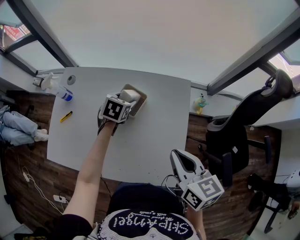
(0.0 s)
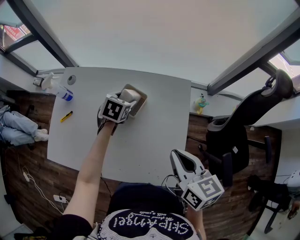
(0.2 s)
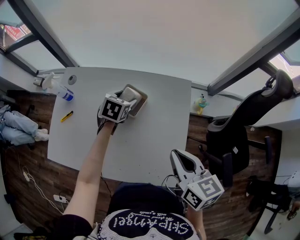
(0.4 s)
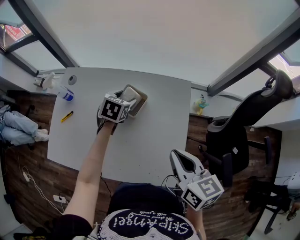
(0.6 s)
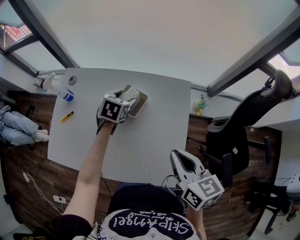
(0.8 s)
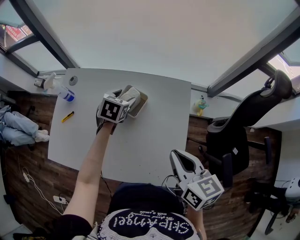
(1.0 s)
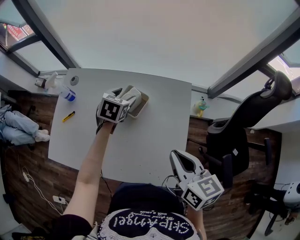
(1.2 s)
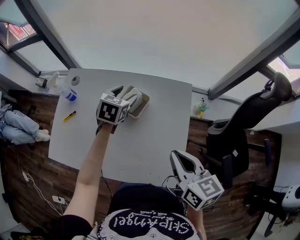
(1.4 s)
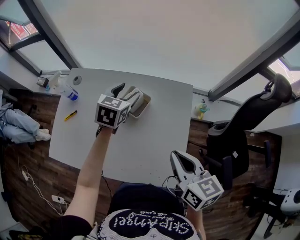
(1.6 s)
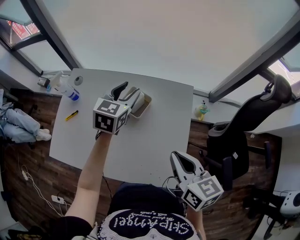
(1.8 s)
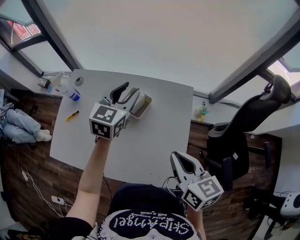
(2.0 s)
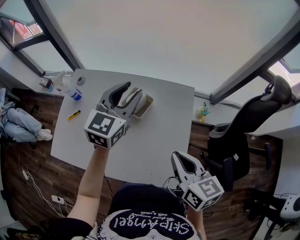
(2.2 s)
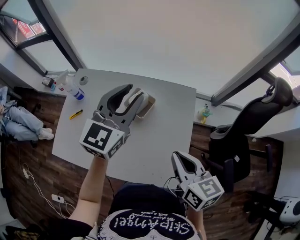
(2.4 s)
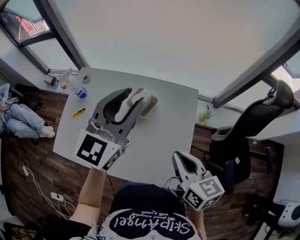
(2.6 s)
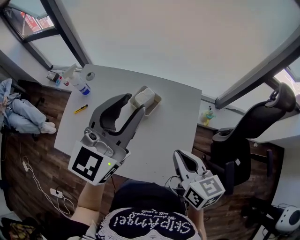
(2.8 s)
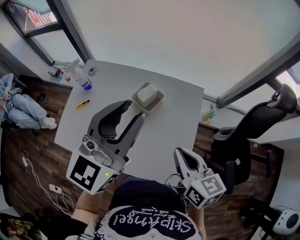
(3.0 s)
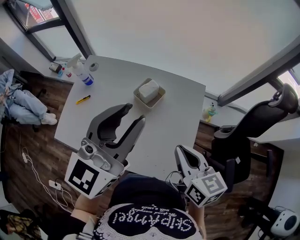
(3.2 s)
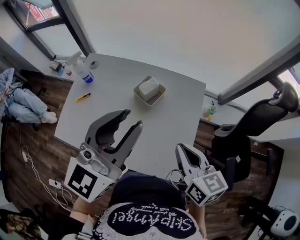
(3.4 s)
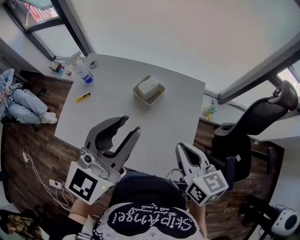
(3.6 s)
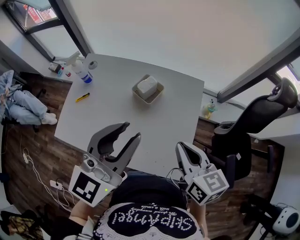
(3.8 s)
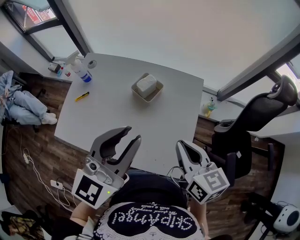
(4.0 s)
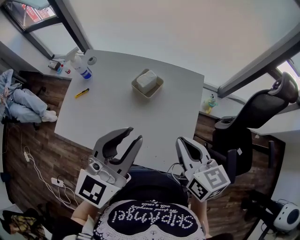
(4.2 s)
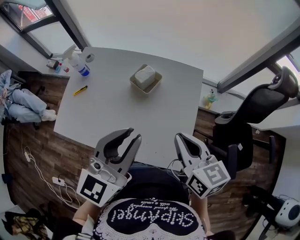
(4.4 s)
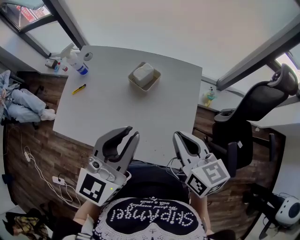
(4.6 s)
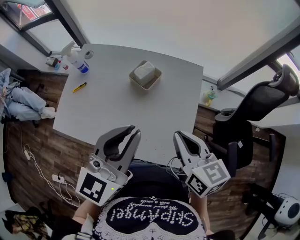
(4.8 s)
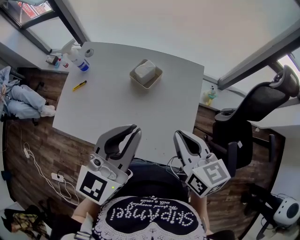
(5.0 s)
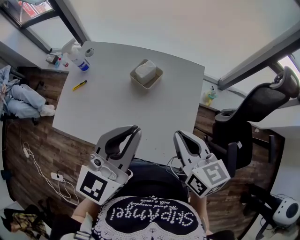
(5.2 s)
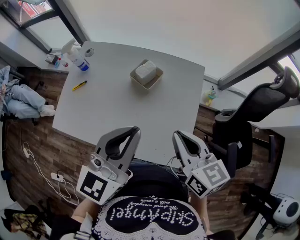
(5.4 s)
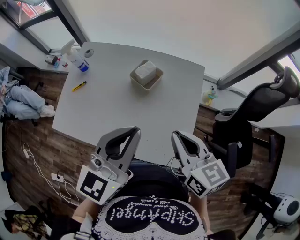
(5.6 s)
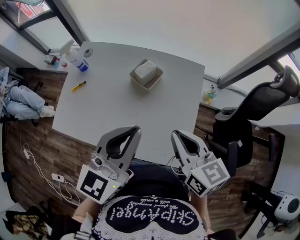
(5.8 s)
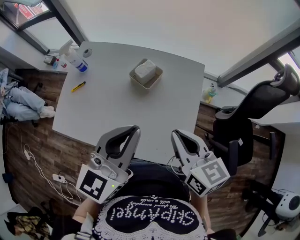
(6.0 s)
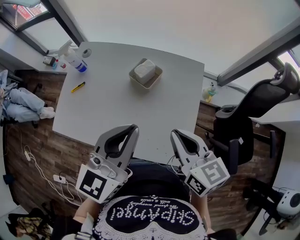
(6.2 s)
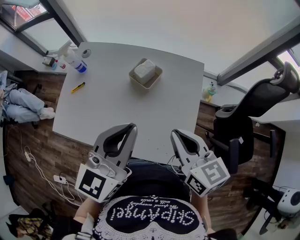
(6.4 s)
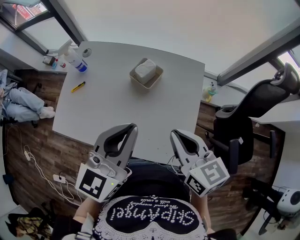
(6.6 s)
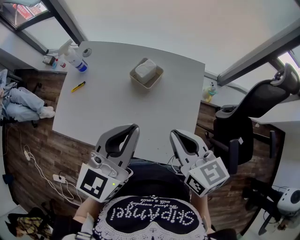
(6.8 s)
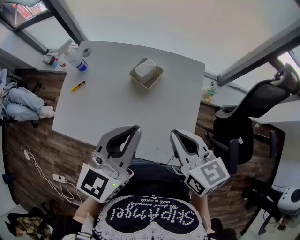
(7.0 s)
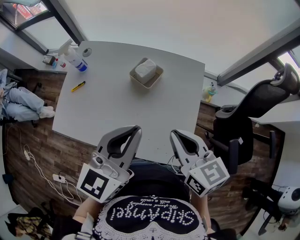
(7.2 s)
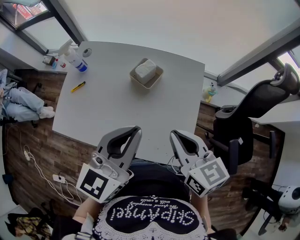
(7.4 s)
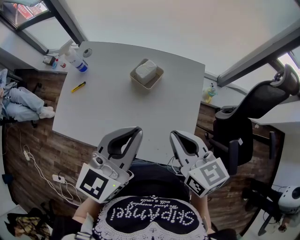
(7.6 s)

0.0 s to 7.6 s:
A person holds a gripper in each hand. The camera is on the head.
0.0 to 1.6 s: The left gripper shifts some 10 cm upward, and swivels some 20 degrees.
1.6 to 3.0 s: The left gripper goes some 30 cm upward and backward, tilts its fingers approximately 40 degrees upward, and closes its fingers.
3.0 to 4.6 s: The left gripper is displaced backward and downward by approximately 10 cm.
4.6 to 6.0 s: The grippers make only small movements.
6.0 to 7.6 s: The two grippers keep their place.

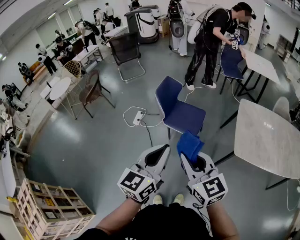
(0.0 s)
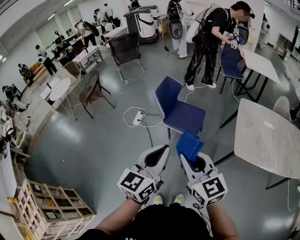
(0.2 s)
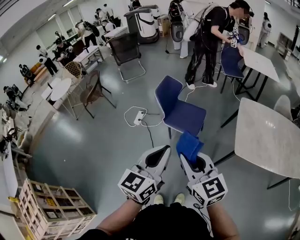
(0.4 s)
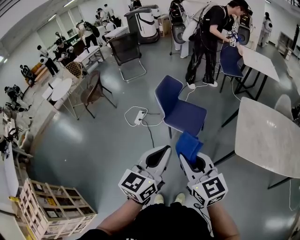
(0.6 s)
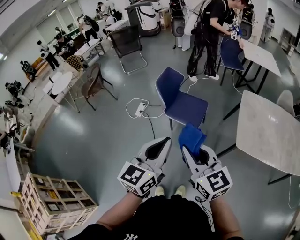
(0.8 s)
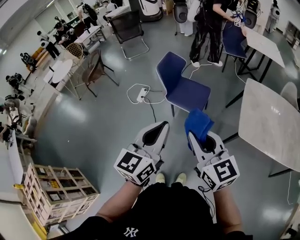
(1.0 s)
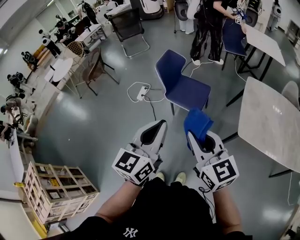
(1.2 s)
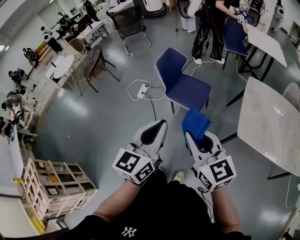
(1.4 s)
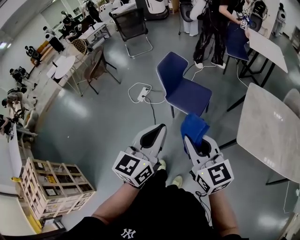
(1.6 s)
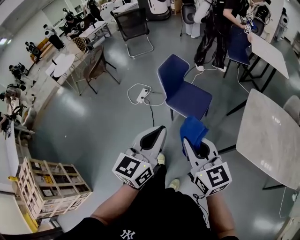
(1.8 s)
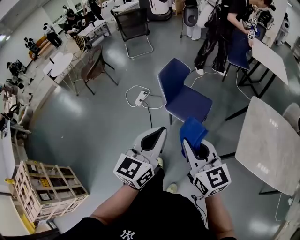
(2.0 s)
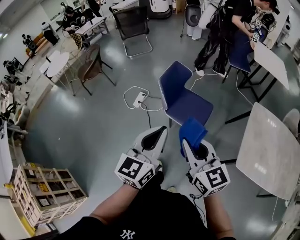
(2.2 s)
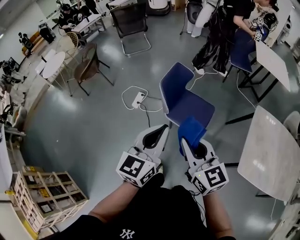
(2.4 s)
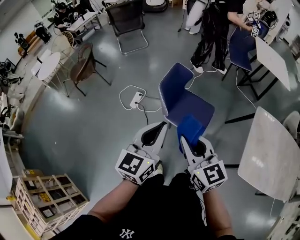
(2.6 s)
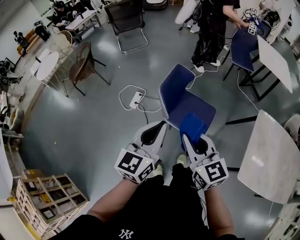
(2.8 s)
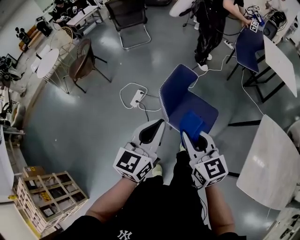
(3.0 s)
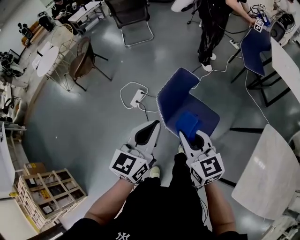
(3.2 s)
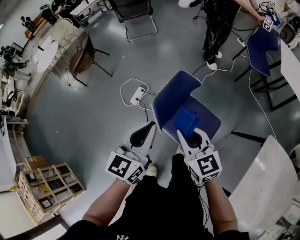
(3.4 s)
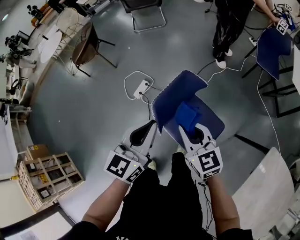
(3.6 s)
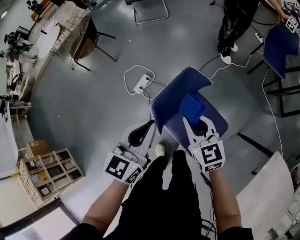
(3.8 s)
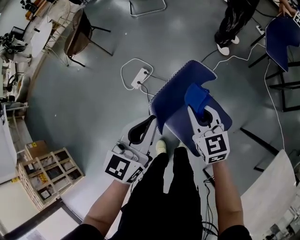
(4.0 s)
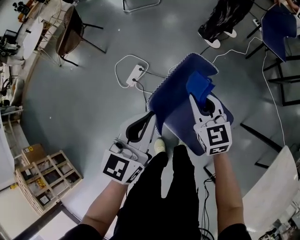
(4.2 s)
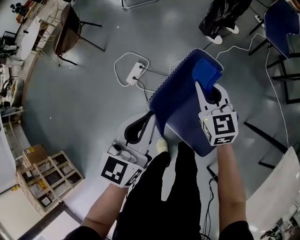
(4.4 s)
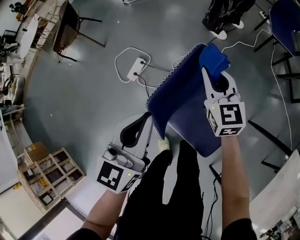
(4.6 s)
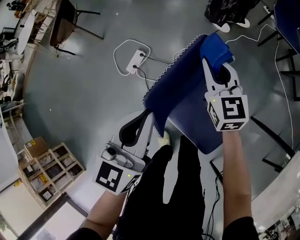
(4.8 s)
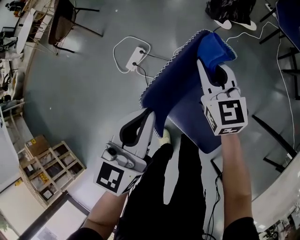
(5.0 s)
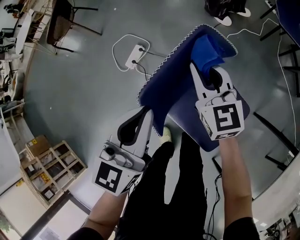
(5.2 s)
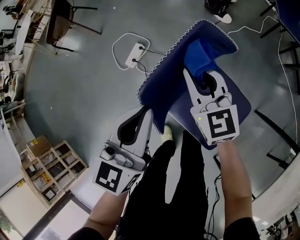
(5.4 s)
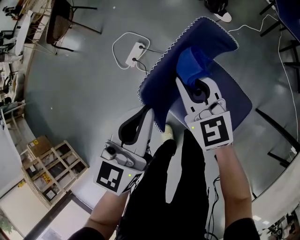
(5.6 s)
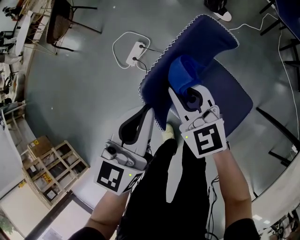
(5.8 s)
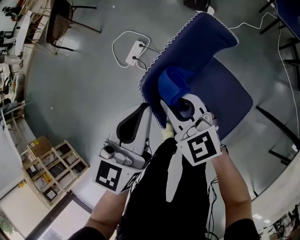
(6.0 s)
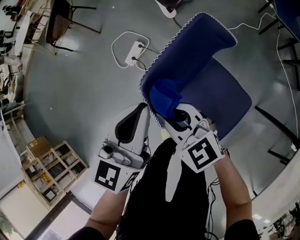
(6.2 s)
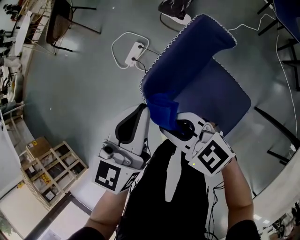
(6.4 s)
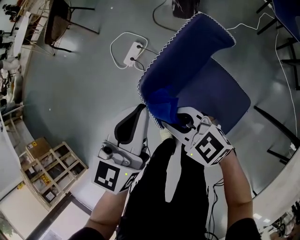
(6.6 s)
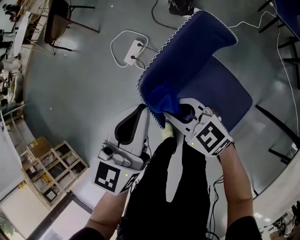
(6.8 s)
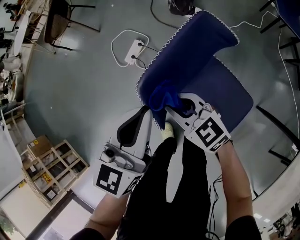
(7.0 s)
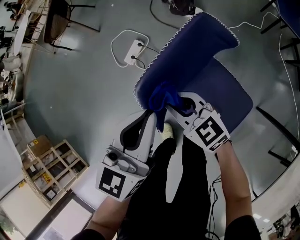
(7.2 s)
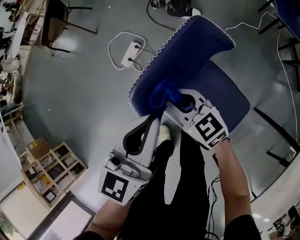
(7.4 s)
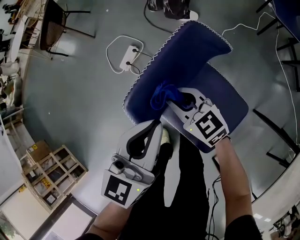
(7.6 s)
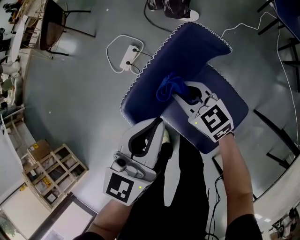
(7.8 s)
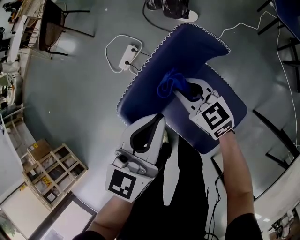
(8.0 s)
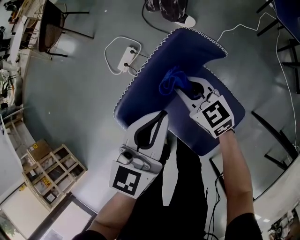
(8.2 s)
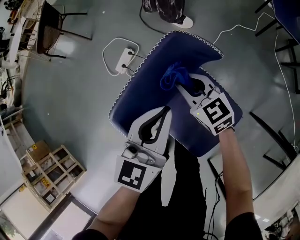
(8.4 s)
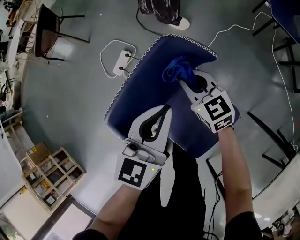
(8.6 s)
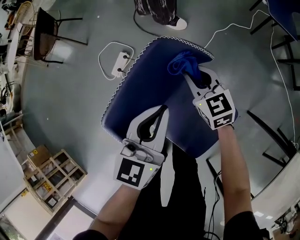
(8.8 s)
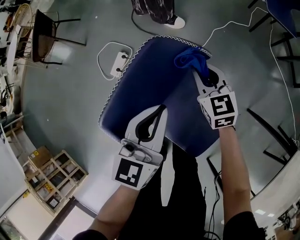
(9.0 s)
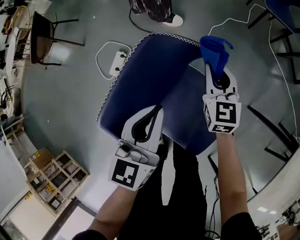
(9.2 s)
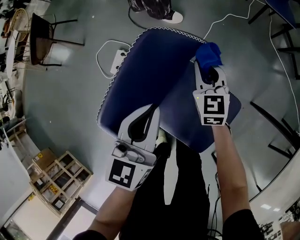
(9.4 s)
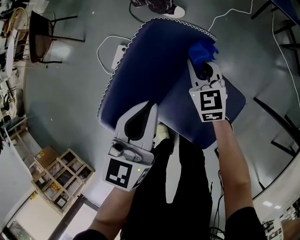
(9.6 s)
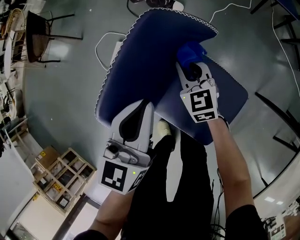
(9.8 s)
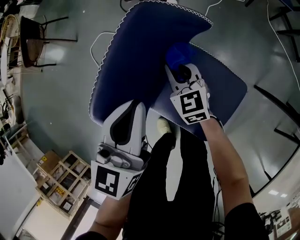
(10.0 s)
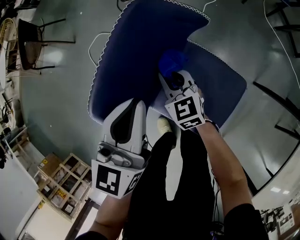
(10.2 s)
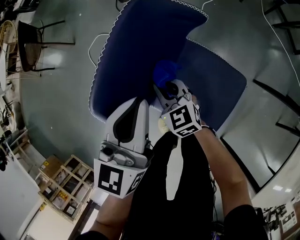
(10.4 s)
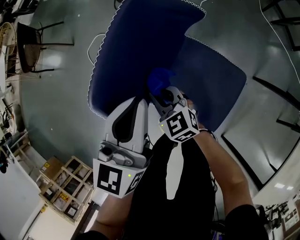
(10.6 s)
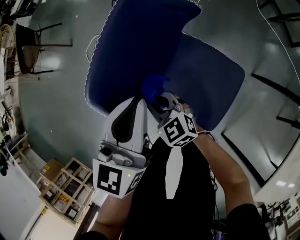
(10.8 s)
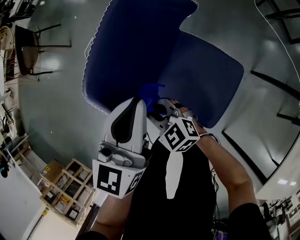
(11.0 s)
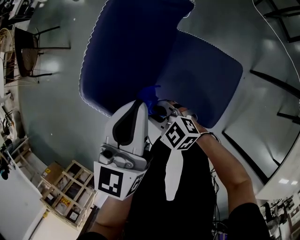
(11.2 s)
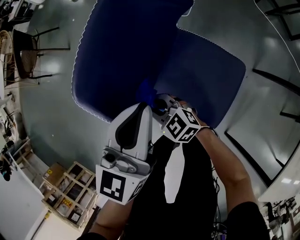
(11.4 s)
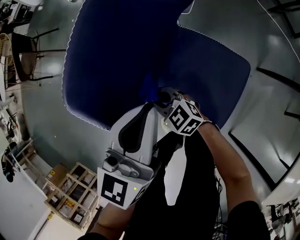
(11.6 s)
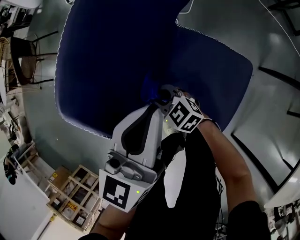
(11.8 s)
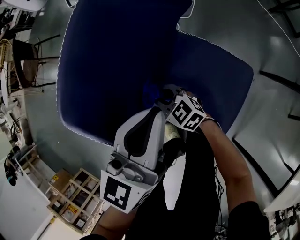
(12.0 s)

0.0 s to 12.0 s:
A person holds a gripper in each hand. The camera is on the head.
0.0 to 1.6 s: The grippers both shift to the right by roughly 5 cm.
1.6 to 3.0 s: The grippers both shift forward by some 35 cm.
3.0 to 4.4 s: Both grippers move forward and downward, some 40 cm.
4.4 to 6.0 s: The left gripper shifts roughly 5 cm downward, while the right gripper heads to the left, backward and downward, covering about 15 cm, and turns by some 20 degrees.
6.0 to 7.6 s: The right gripper heads downward and to the right, covering approximately 10 cm, and reaches some 5 cm backward, then returns. The left gripper goes approximately 5 cm to the right.
7.6 to 9.0 s: The left gripper heads to the right and forward, covering roughly 10 cm, while the right gripper goes roughly 20 cm to the right and forward, and swivels some 30 degrees.
9.0 to 10.4 s: The left gripper travels to the left by some 5 cm, while the right gripper is displaced backward, to the left and downward by roughly 20 cm.
10.4 to 12.0 s: The right gripper is displaced downward and backward by some 10 cm, while the left gripper shifts approximately 5 cm backward.

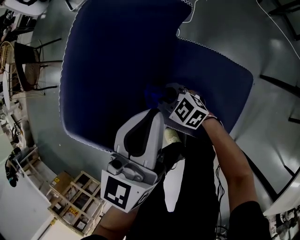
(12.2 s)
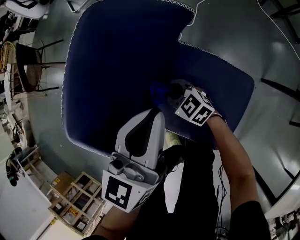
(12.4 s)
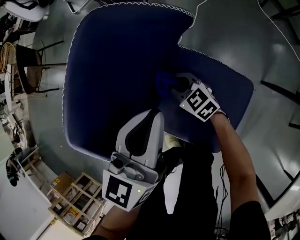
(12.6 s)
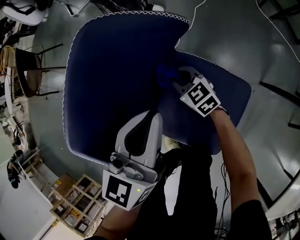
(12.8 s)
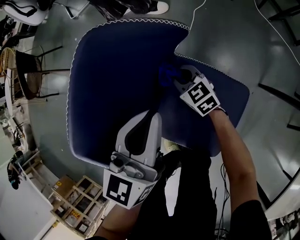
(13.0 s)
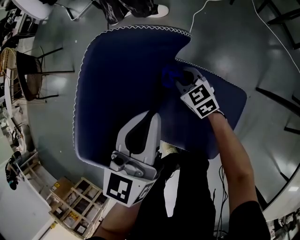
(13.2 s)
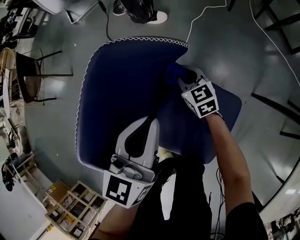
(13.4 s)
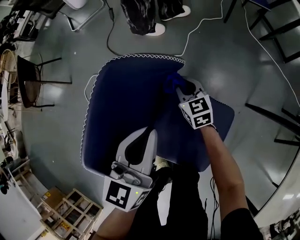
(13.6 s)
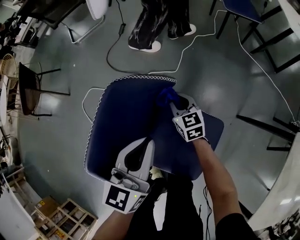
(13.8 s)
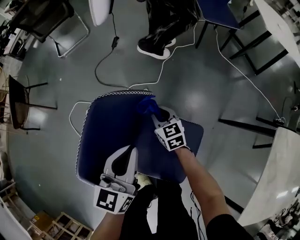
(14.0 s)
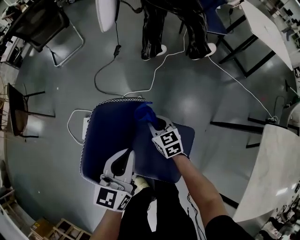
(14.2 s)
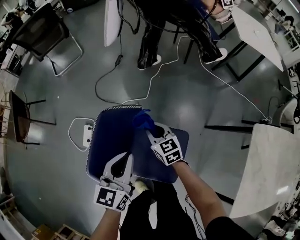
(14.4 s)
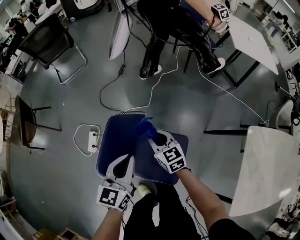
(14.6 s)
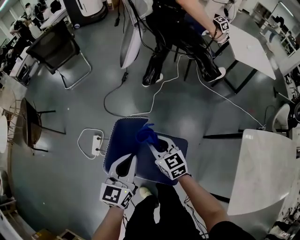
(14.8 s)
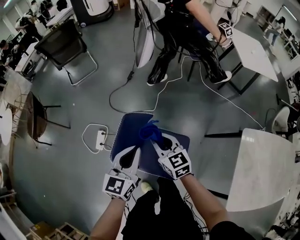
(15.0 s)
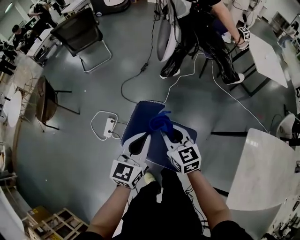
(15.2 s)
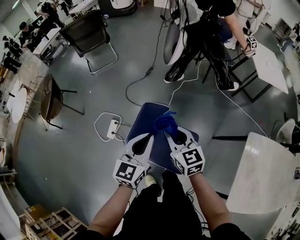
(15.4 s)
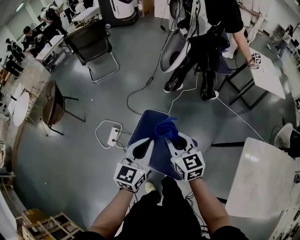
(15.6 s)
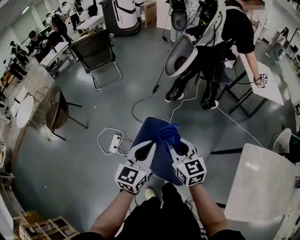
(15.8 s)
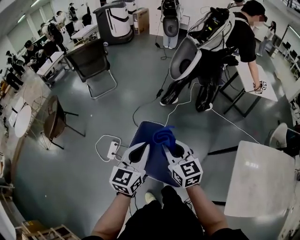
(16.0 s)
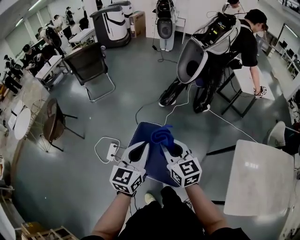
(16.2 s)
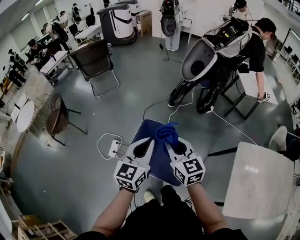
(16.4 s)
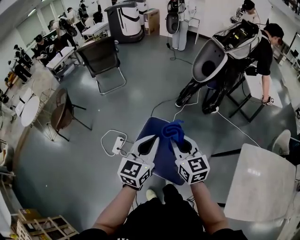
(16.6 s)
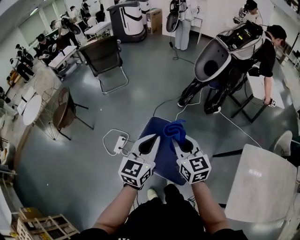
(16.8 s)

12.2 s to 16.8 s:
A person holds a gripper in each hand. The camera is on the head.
12.2 to 13.8 s: The left gripper is displaced forward by about 5 cm. Meanwhile the right gripper moves to the right, forward and upward, about 25 cm, and swivels roughly 40 degrees.
13.8 to 15.2 s: The left gripper is displaced upward by some 25 cm; the right gripper travels upward by roughly 40 cm.
15.2 to 16.8 s: The two grippers go about 15 cm upward and backward.
